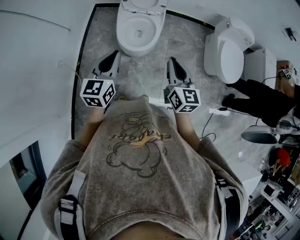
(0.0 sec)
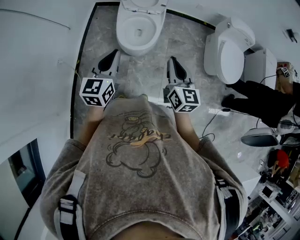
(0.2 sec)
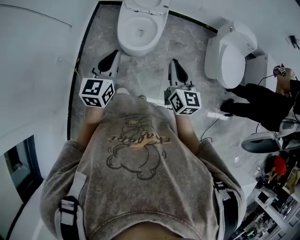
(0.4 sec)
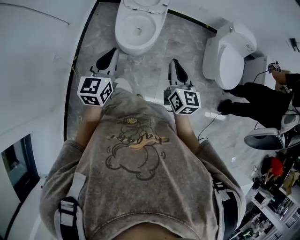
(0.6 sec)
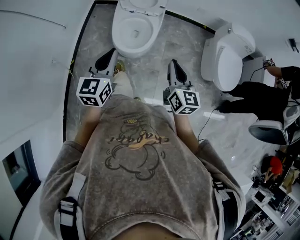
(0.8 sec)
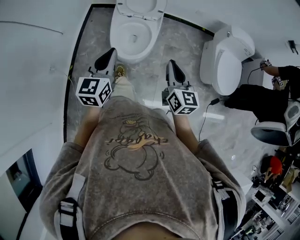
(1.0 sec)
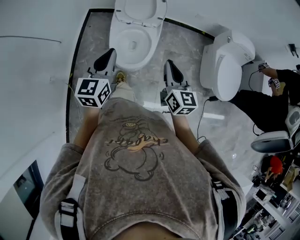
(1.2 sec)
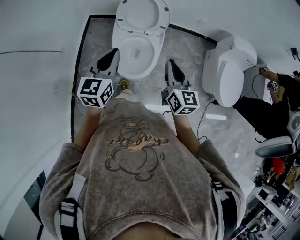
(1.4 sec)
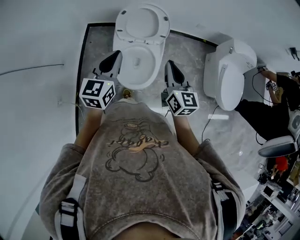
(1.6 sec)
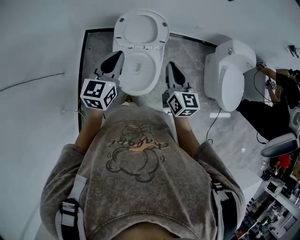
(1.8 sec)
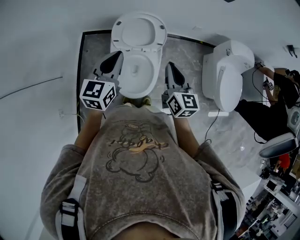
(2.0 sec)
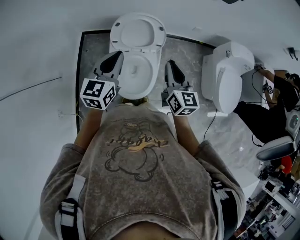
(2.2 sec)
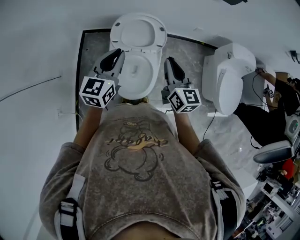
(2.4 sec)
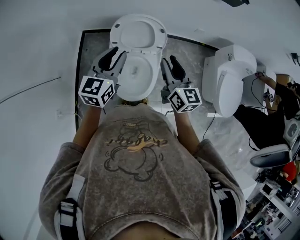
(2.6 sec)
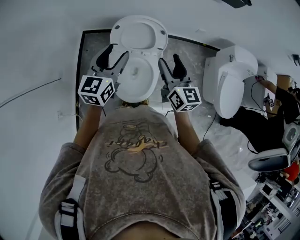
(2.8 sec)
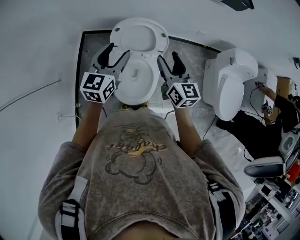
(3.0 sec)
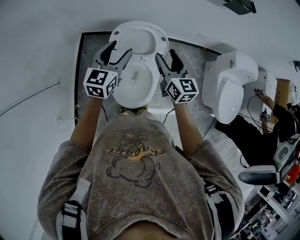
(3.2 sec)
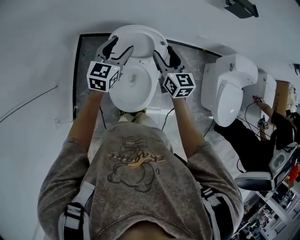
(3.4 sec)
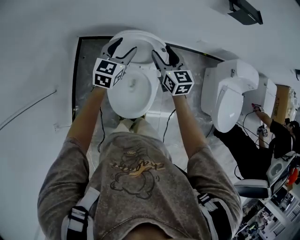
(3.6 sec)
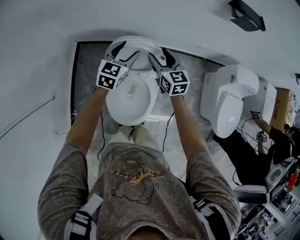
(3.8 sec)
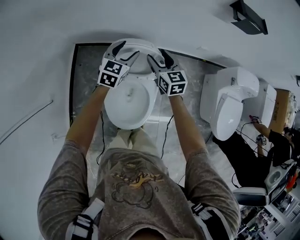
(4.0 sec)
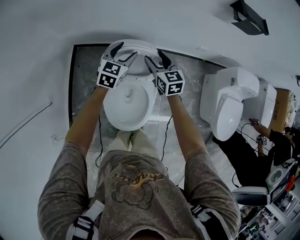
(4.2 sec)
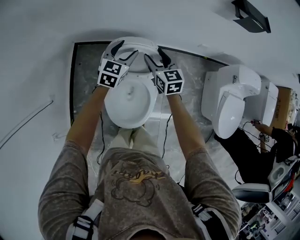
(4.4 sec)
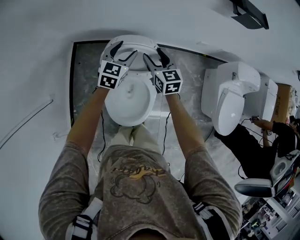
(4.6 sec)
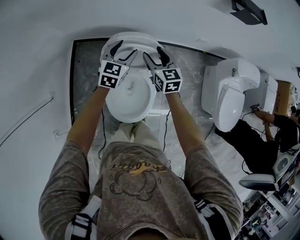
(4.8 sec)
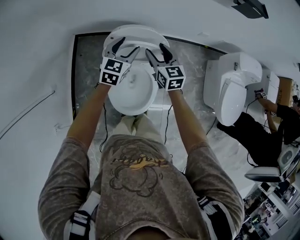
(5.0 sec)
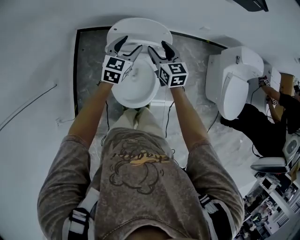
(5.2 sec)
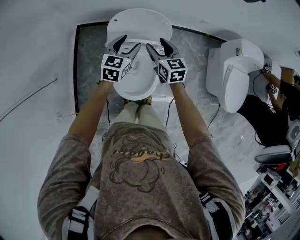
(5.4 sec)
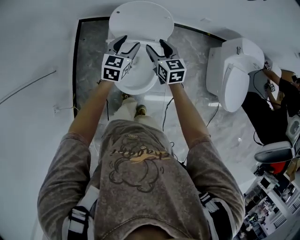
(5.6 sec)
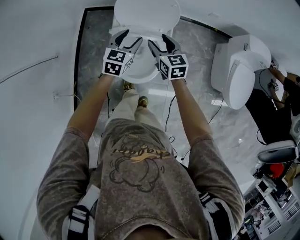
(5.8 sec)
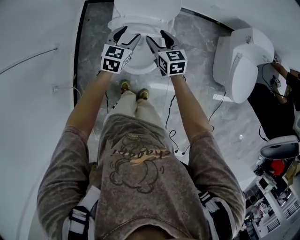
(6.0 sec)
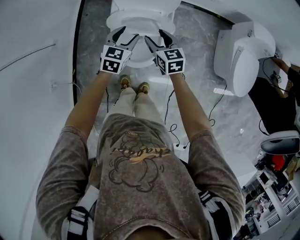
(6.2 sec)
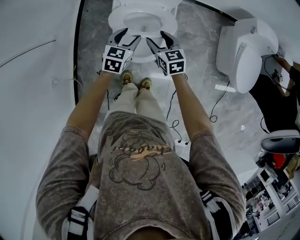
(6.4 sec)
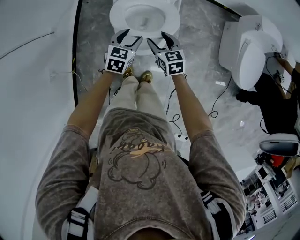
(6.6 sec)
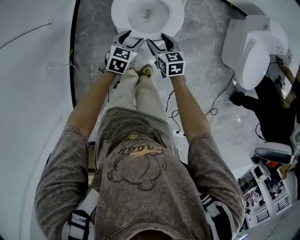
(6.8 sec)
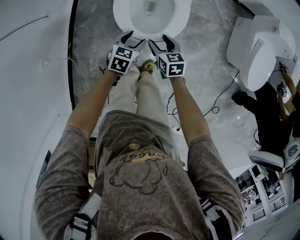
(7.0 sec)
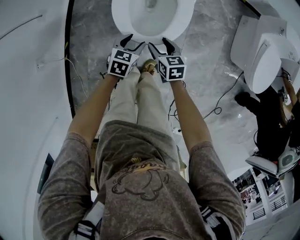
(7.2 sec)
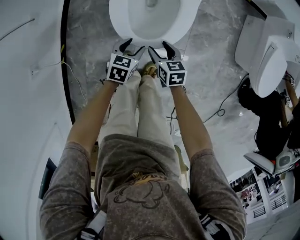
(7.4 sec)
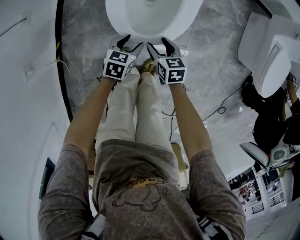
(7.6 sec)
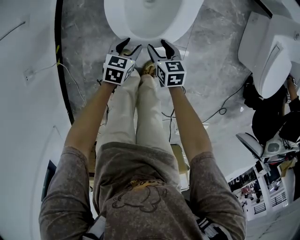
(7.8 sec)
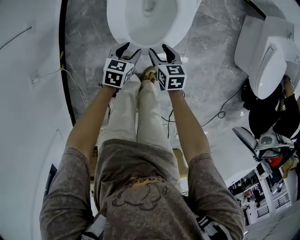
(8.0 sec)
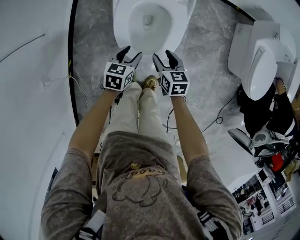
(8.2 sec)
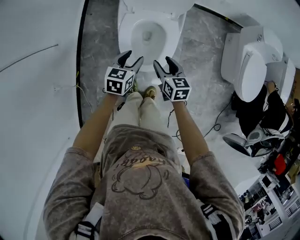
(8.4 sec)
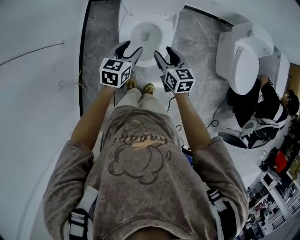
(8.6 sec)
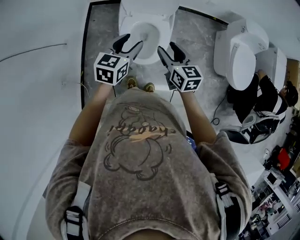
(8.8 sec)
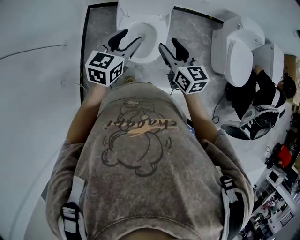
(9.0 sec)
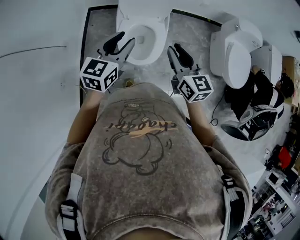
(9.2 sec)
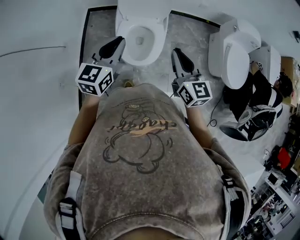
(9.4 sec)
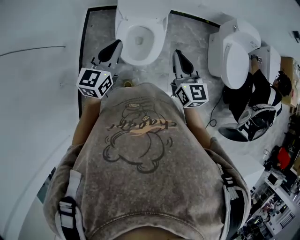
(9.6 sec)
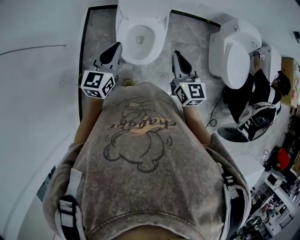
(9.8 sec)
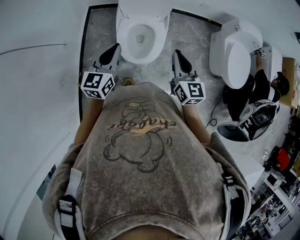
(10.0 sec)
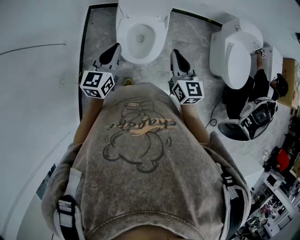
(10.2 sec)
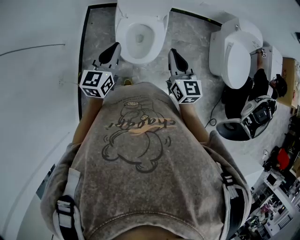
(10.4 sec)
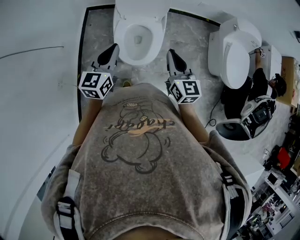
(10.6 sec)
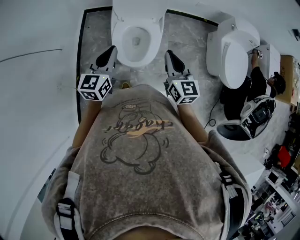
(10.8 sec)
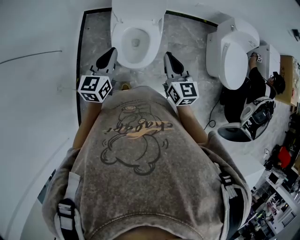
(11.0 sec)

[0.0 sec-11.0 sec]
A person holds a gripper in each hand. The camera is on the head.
0.0 sec to 1.6 sec: Both grippers move forward, about 35 cm.
1.6 sec to 3.2 sec: The two grippers go about 20 cm forward. The right gripper opens. The left gripper opens.
3.2 sec to 4.8 sec: The left gripper is displaced downward and forward by some 20 cm, while the right gripper is displaced forward and downward by approximately 20 cm.
4.8 sec to 6.2 sec: Both grippers travel together backward, roughly 30 cm.
6.2 sec to 7.8 sec: Both grippers travel together downward and backward, about 35 cm. The right gripper changes its angle by about 20 degrees, while the left gripper changes its angle by some 30 degrees.
7.8 sec to 9.4 sec: Both grippers move upward, approximately 60 cm. The right gripper points its fingers roughly 40 degrees further upward, and closes up; the left gripper angles its fingers upward, by some 40 degrees, and closes.
9.4 sec to 11.0 sec: The two grippers go about 5 cm downward.

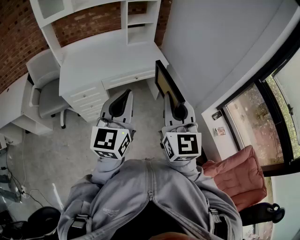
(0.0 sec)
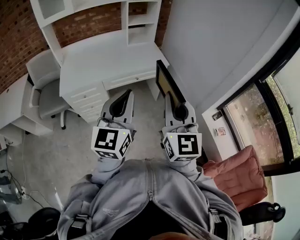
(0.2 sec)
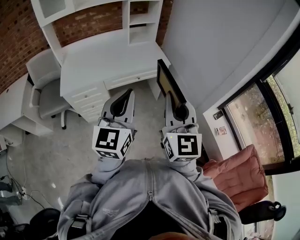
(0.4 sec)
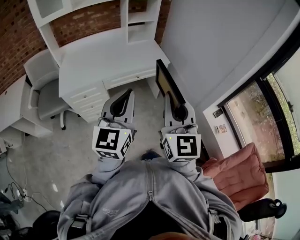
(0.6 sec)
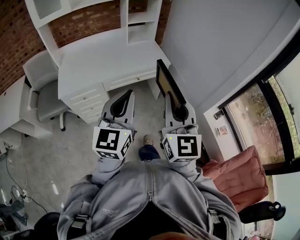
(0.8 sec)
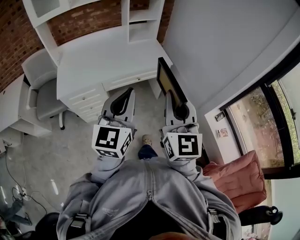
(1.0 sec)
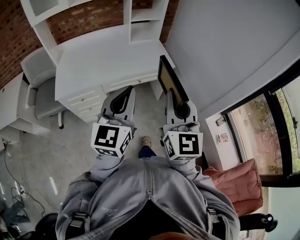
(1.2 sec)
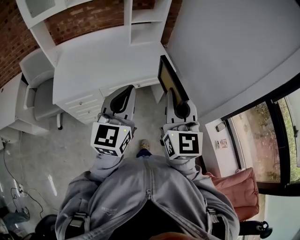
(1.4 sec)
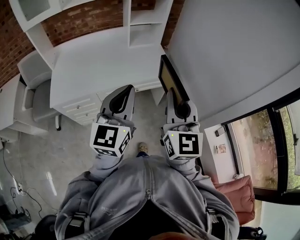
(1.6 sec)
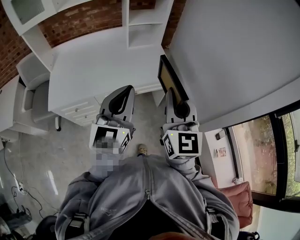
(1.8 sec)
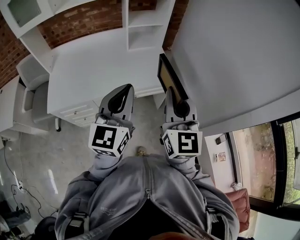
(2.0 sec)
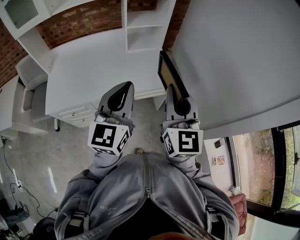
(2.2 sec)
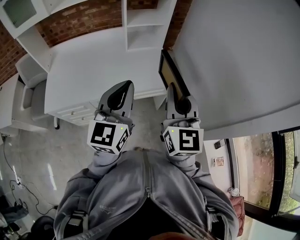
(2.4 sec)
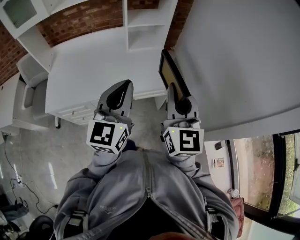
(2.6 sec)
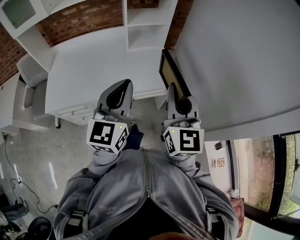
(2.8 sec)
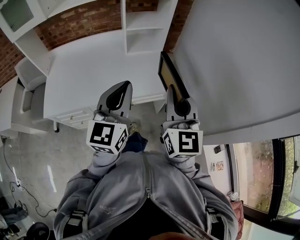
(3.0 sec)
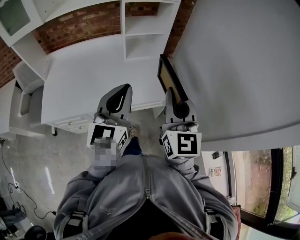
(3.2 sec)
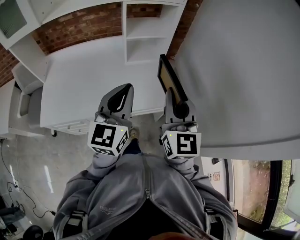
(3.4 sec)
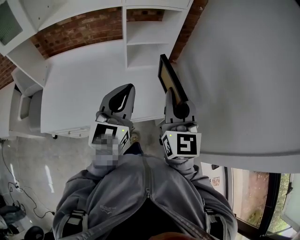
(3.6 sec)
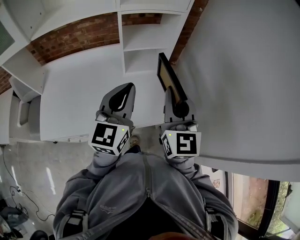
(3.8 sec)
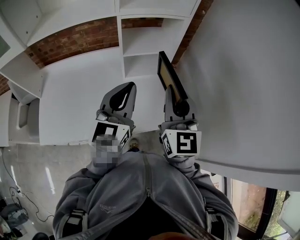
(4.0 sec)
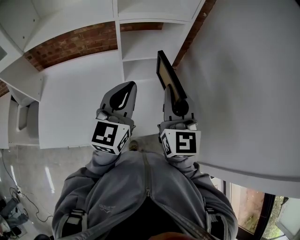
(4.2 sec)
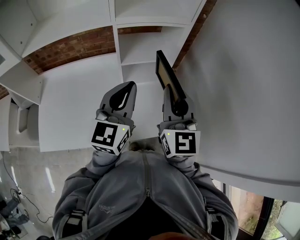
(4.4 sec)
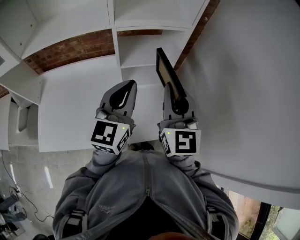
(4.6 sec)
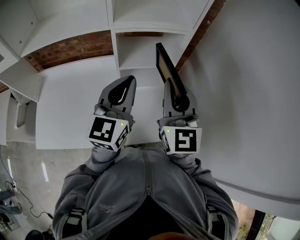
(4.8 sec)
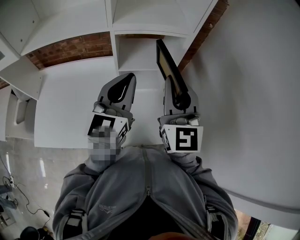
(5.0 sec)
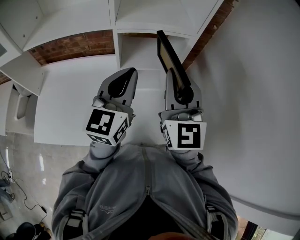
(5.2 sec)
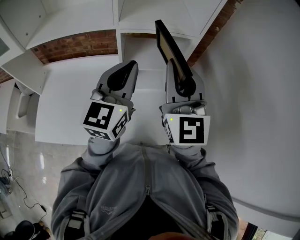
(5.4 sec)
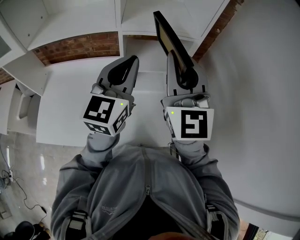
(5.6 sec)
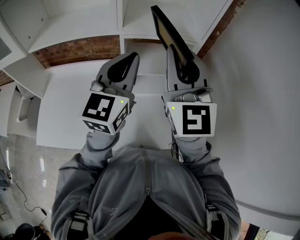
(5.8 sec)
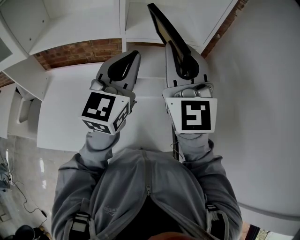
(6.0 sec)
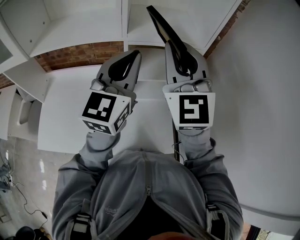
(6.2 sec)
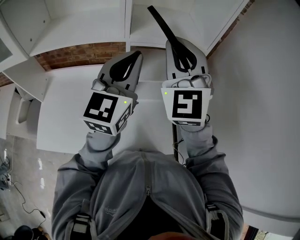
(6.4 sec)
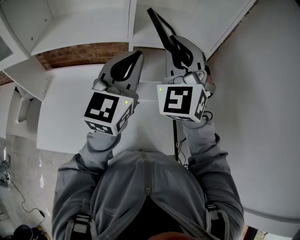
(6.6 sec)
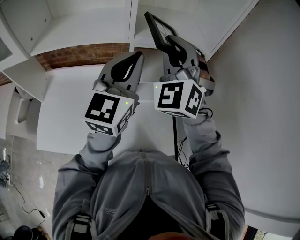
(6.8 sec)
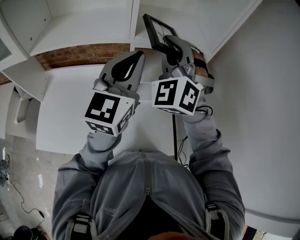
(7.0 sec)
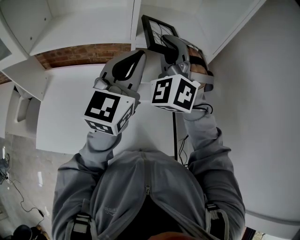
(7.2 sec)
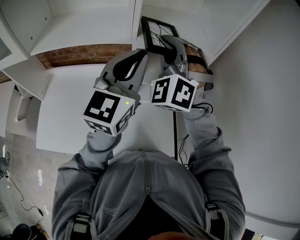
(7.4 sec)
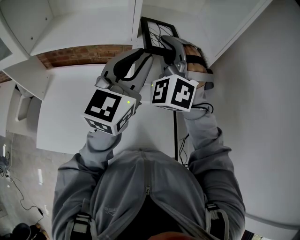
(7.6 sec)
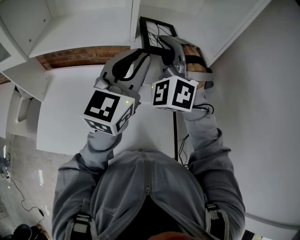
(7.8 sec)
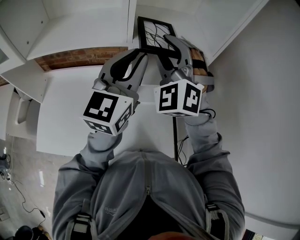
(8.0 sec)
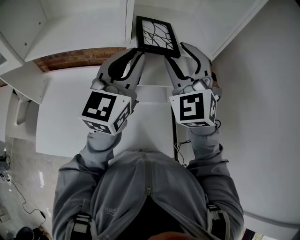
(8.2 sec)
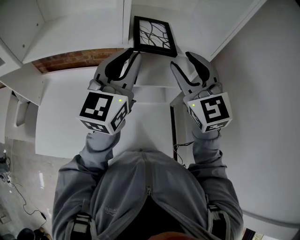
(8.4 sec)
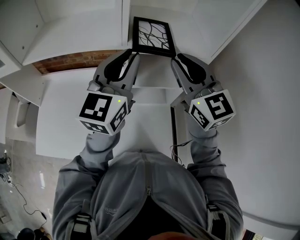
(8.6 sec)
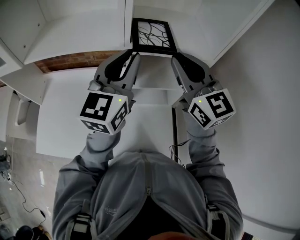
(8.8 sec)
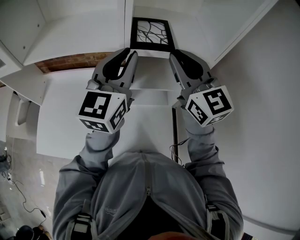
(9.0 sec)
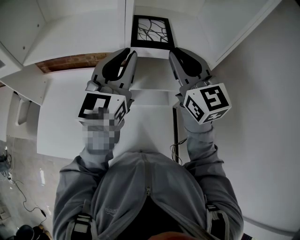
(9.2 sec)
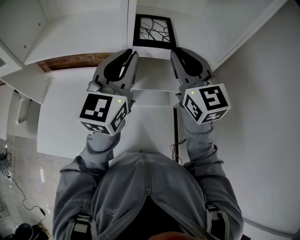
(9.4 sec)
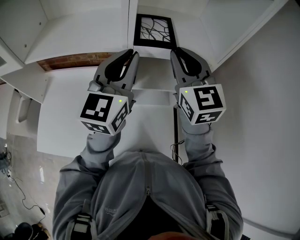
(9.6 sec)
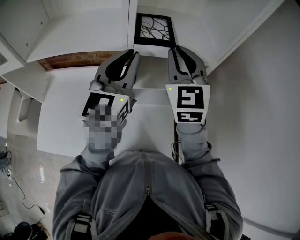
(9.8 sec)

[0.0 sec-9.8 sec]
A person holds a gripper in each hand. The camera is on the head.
0.0 sec to 1.4 sec: Both grippers travel together forward, some 15 cm.
1.4 sec to 2.8 sec: Both grippers travel together forward, some 20 cm.
2.8 sec to 4.2 sec: Both grippers travel together forward, some 30 cm.
4.2 sec to 5.6 sec: The left gripper moves forward and upward, about 15 cm. Meanwhile the right gripper moves upward and forward, some 15 cm.
5.6 sec to 7.0 sec: The left gripper moves some 5 cm. The right gripper is displaced forward and to the left by approximately 15 cm, and twists roughly 50 degrees counterclockwise, seen from behind.
7.0 sec to 8.4 sec: The right gripper is displaced to the right by some 5 cm, changes its angle by about 40 degrees, and opens up.
8.4 sec to 9.8 sec: The right gripper travels forward by roughly 5 cm, and closes its fingers.

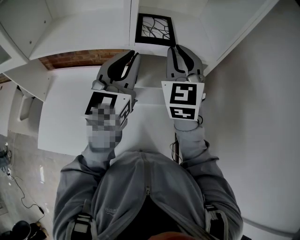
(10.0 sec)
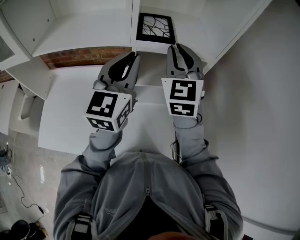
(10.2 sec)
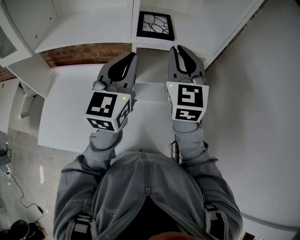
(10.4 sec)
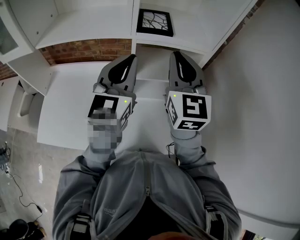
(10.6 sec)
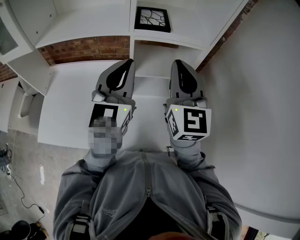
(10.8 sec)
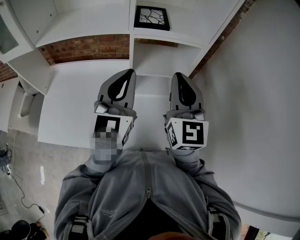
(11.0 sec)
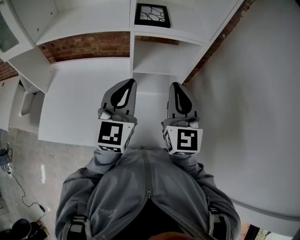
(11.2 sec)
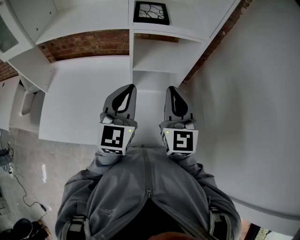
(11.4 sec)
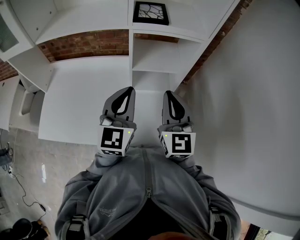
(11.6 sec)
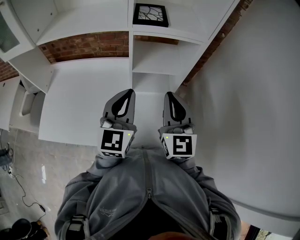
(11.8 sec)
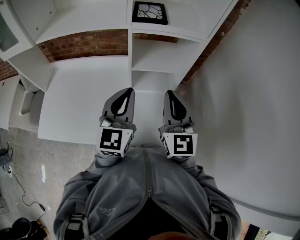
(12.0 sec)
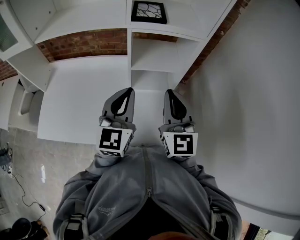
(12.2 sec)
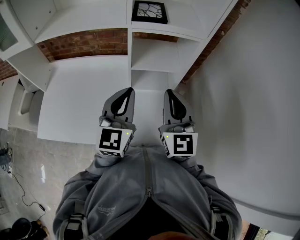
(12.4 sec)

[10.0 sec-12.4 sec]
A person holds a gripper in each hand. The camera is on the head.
10.0 sec to 11.2 sec: The right gripper travels backward by roughly 15 cm. Meanwhile the left gripper goes about 15 cm backward and downward.
11.2 sec to 12.4 sec: The grippers move only a little.
